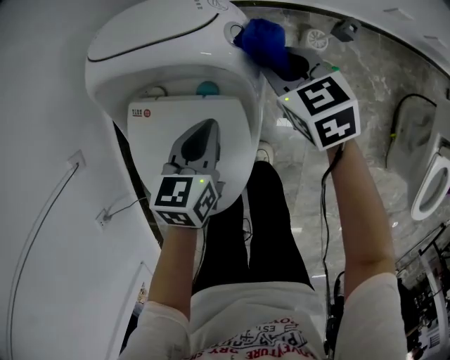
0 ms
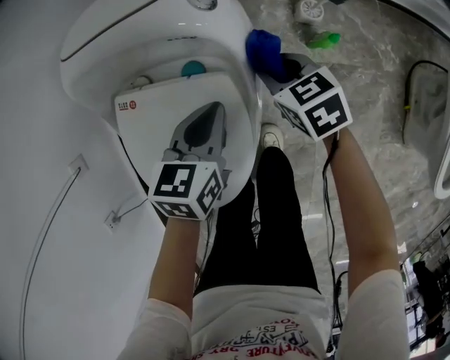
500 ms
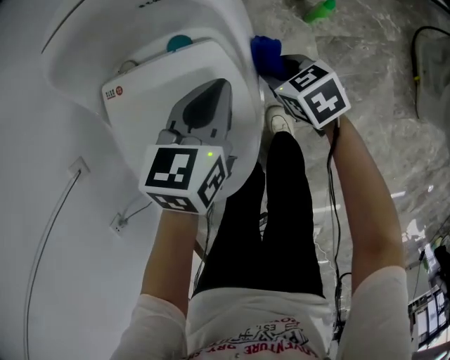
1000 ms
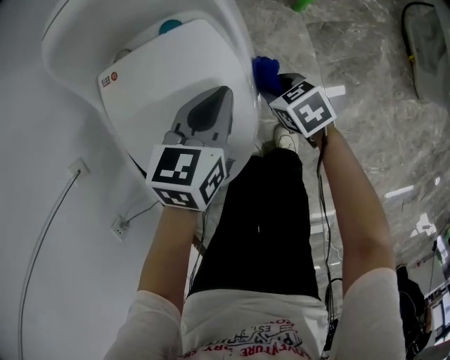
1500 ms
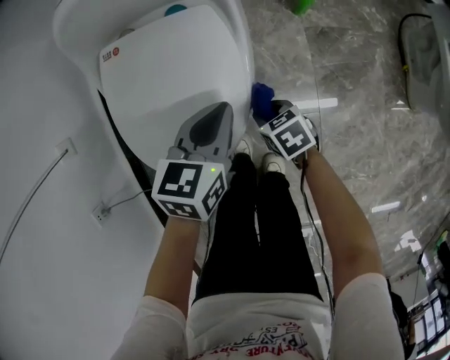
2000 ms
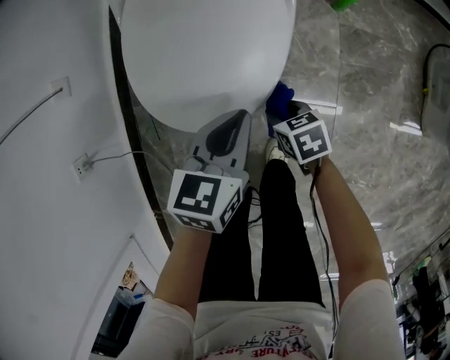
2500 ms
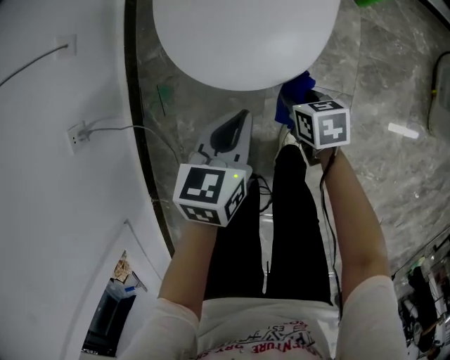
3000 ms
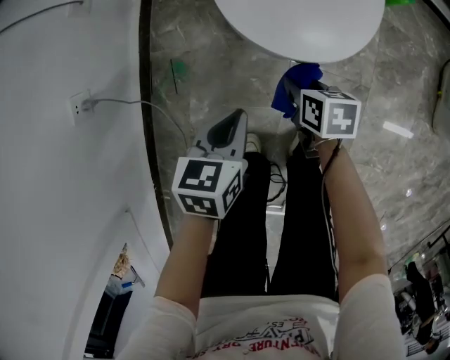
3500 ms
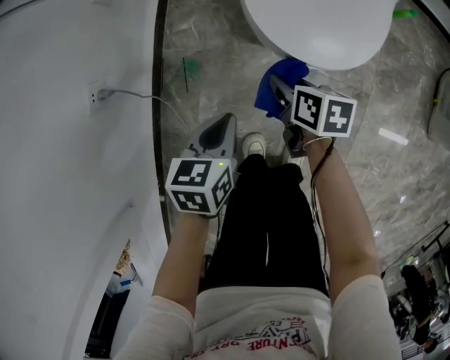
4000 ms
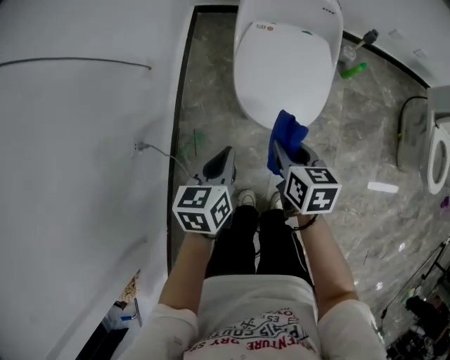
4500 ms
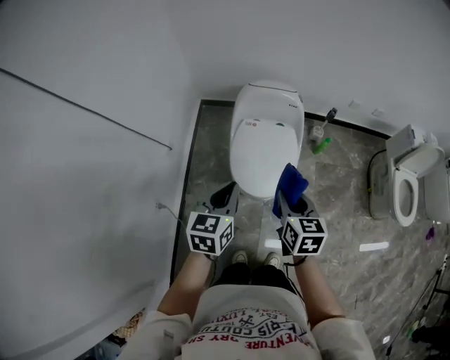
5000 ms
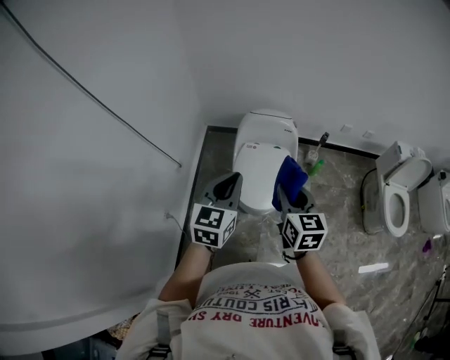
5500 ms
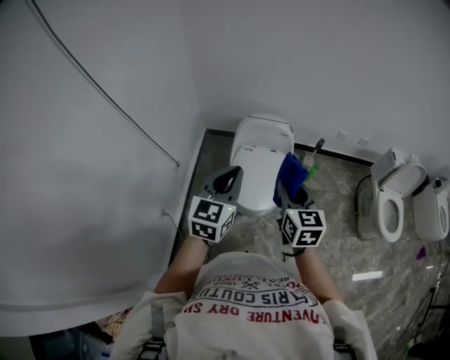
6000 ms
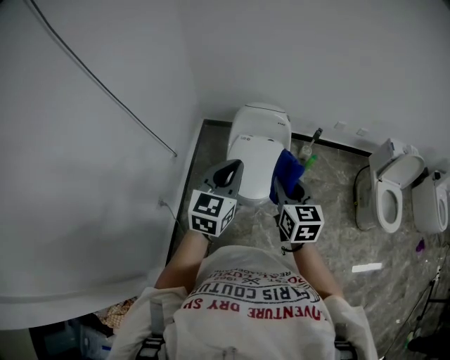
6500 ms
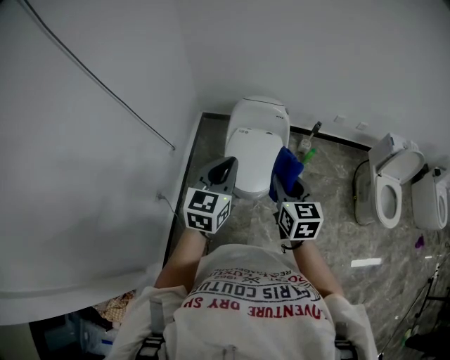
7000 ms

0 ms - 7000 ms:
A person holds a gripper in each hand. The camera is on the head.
0 ms - 2000 ms: The right gripper travels backward and downward by approximately 40 cm, and turns by roughly 30 degrees. Meanwhile the left gripper moves backward, some 20 cm.
2000 ms - 3500 ms: The right gripper moves to the left and backward, about 25 cm. The left gripper is displaced to the left and backward by roughly 40 cm, and swivels roughly 20 degrees.
3500 ms - 5000 ms: Both grippers travel together upward, roughly 50 cm. The left gripper rotates roughly 30 degrees. Meanwhile the right gripper turns by about 40 degrees.
5000 ms - 7000 ms: The grippers both shift upward and backward by about 20 cm.

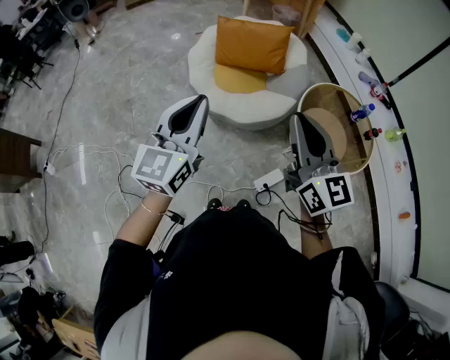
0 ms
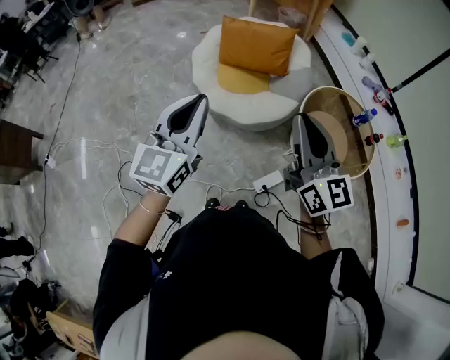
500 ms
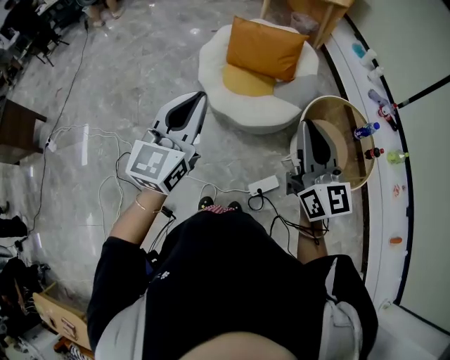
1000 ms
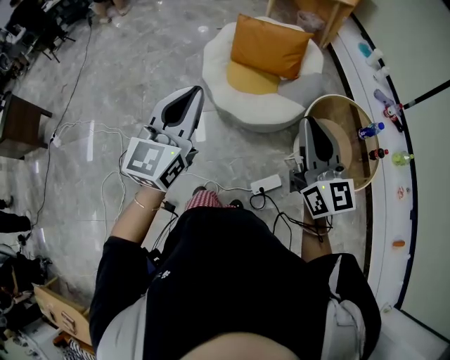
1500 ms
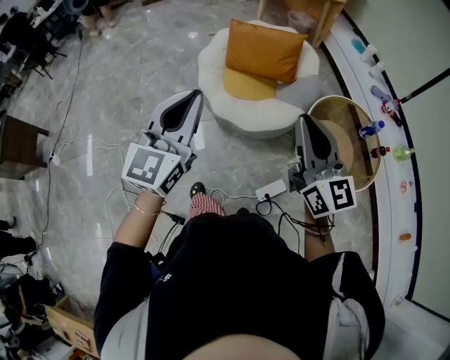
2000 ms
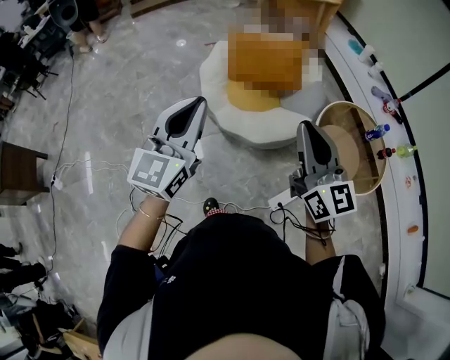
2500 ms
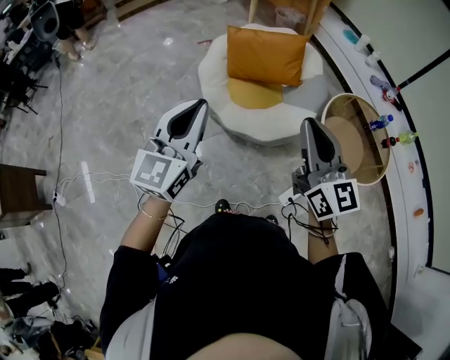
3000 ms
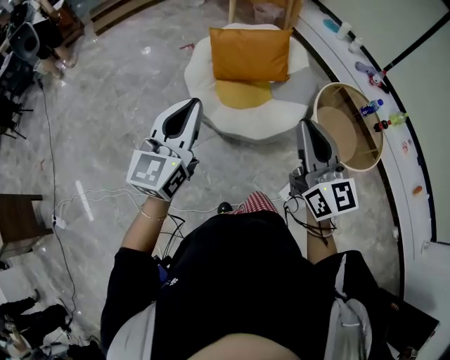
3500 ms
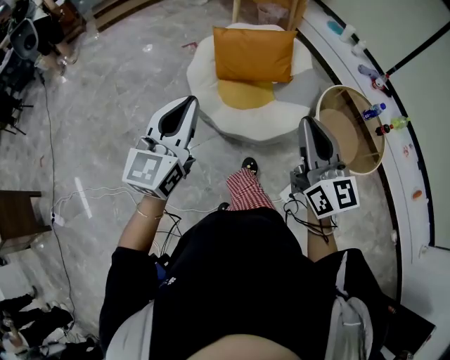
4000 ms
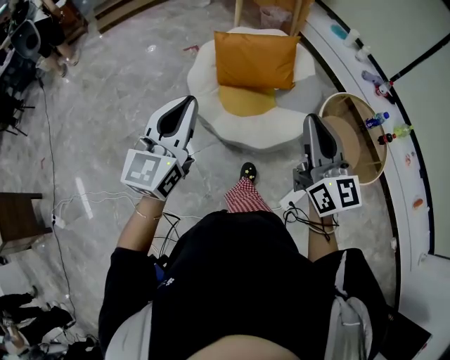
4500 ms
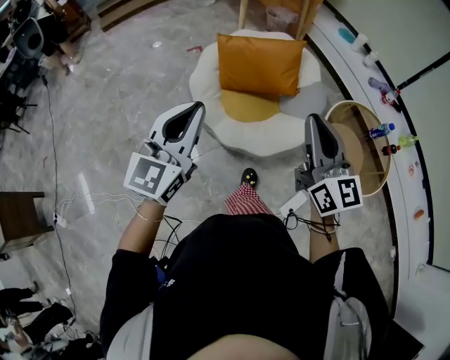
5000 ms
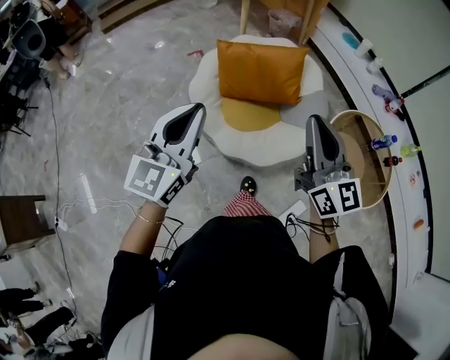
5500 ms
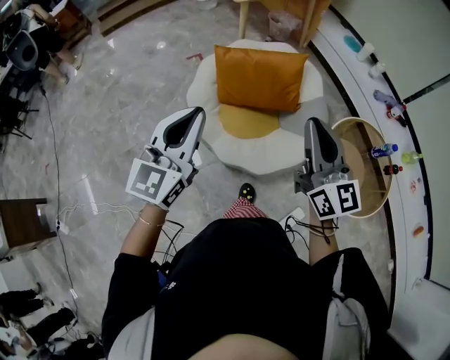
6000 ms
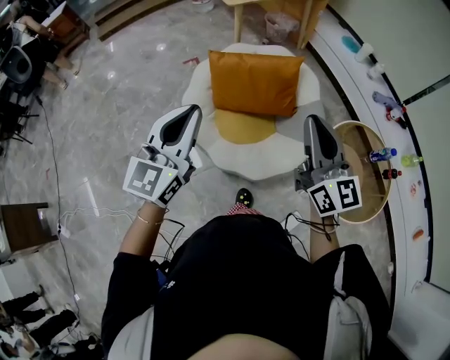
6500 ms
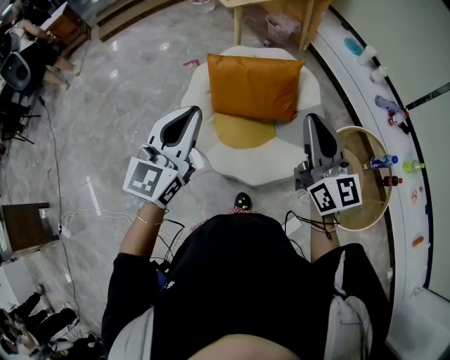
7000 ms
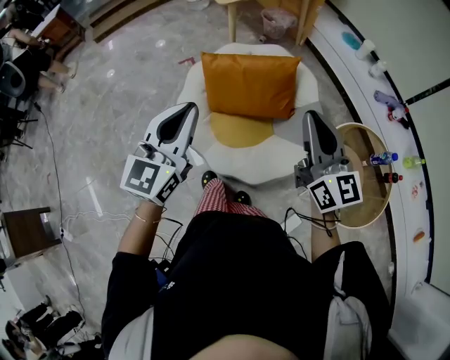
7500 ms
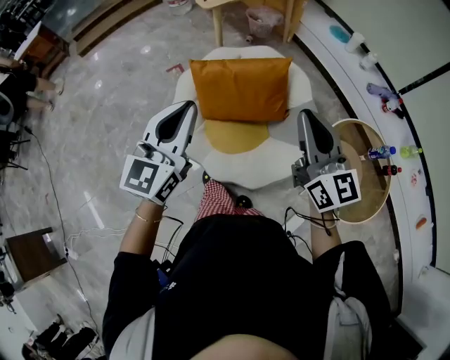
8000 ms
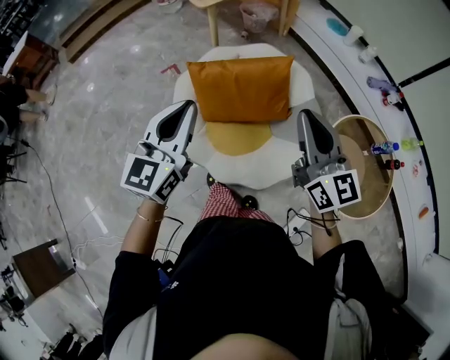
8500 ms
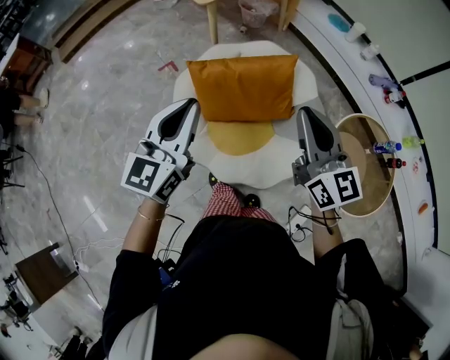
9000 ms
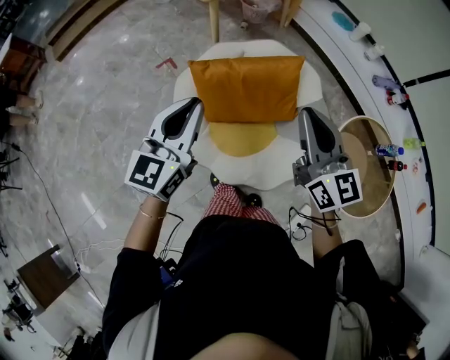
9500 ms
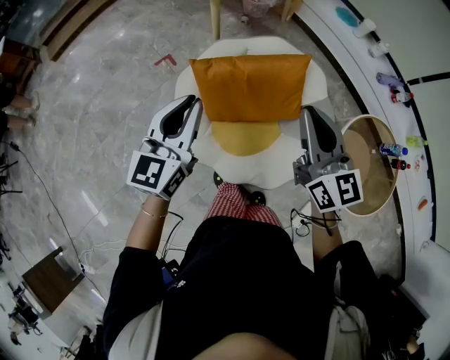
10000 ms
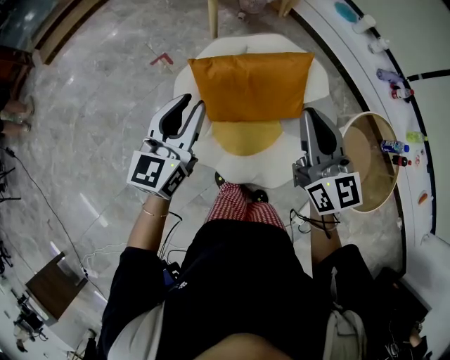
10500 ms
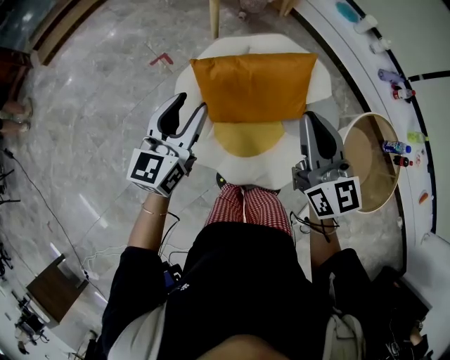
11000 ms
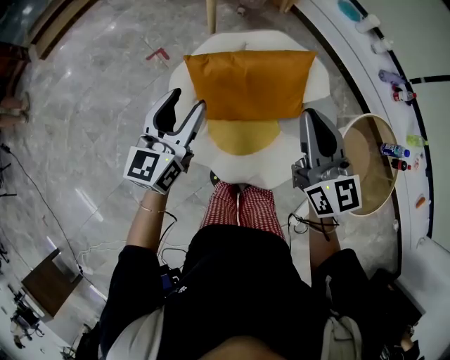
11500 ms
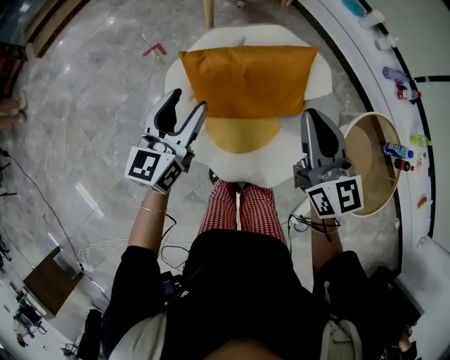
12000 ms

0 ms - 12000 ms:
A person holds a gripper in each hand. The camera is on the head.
0 ms - 2000 ms: The right gripper shifts by roughly 5 cm.
2000 ms - 4000 ms: The left gripper is displaced to the left and forward by roughly 25 cm. Meanwhile the right gripper moves to the left, some 20 cm.
4000 ms - 6000 ms: Both grippers travel together forward, some 20 cm.
6000 ms - 8000 ms: Both grippers travel together forward, approximately 15 cm.
8000 ms - 10000 ms: The right gripper shifts about 20 cm forward and to the left, while the left gripper is displaced forward, to the left and downward by about 20 cm.
10000 ms - 12000 ms: The left gripper shifts approximately 10 cm downward and forward, and opens its fingers. Meanwhile the right gripper goes approximately 5 cm downward.

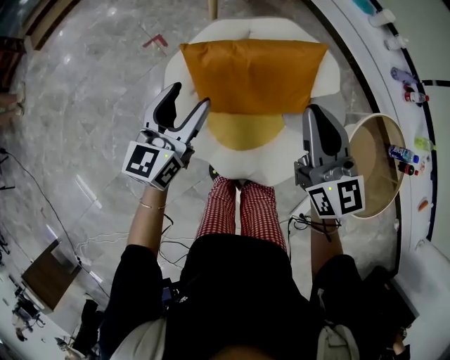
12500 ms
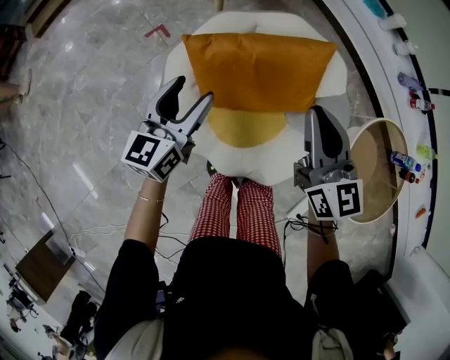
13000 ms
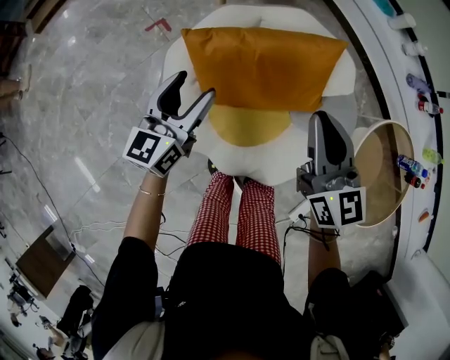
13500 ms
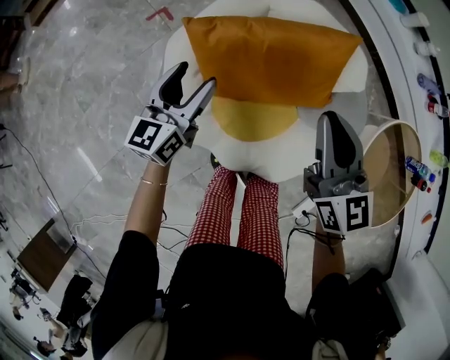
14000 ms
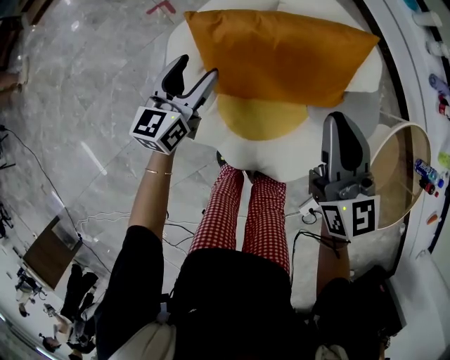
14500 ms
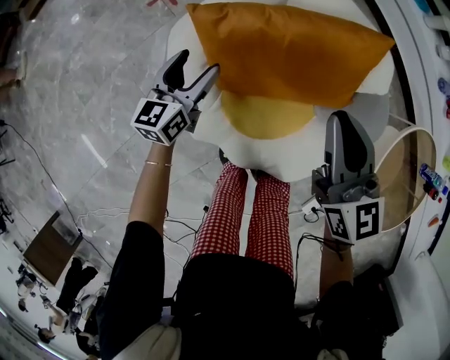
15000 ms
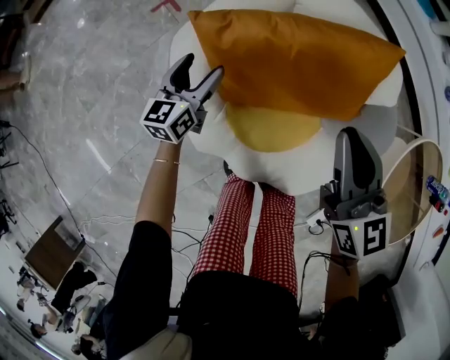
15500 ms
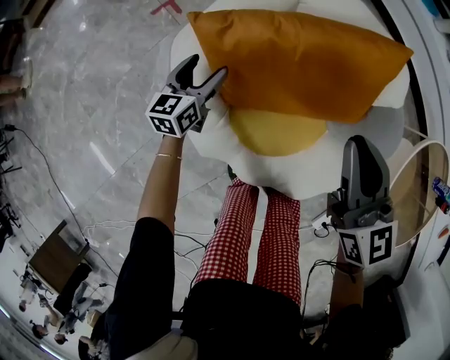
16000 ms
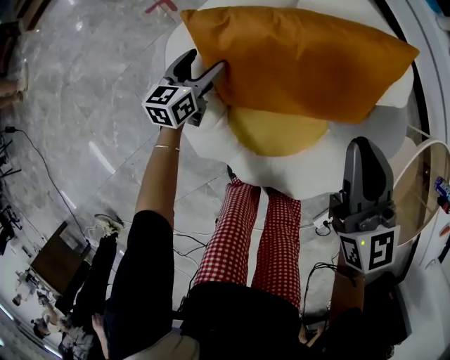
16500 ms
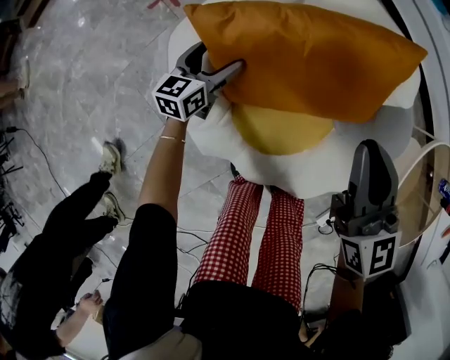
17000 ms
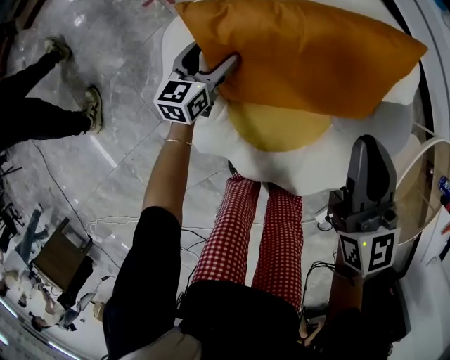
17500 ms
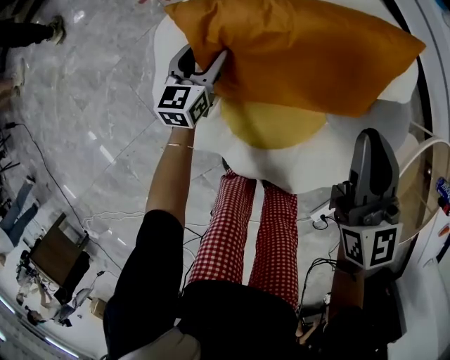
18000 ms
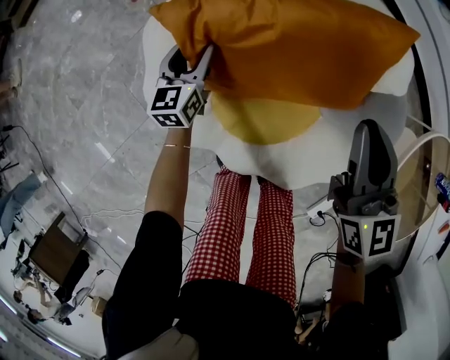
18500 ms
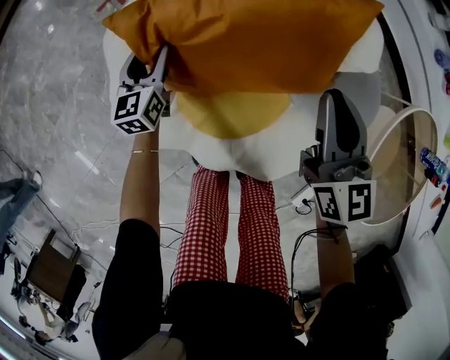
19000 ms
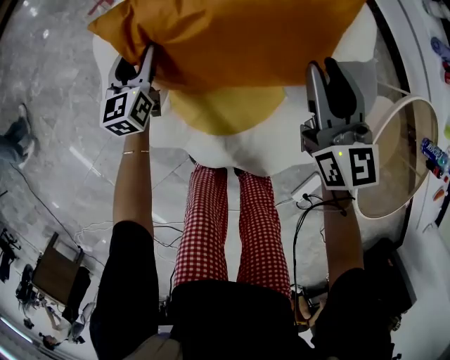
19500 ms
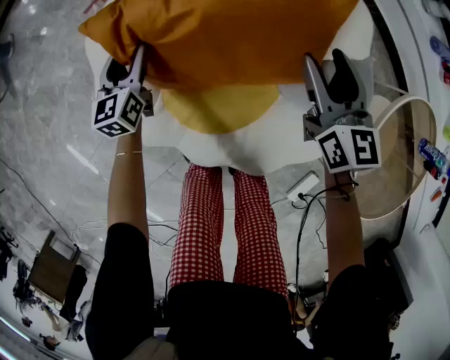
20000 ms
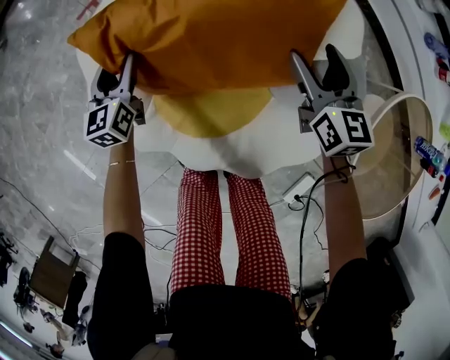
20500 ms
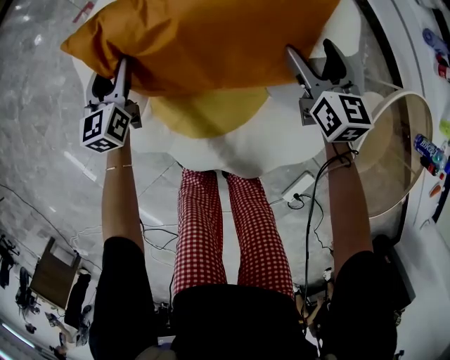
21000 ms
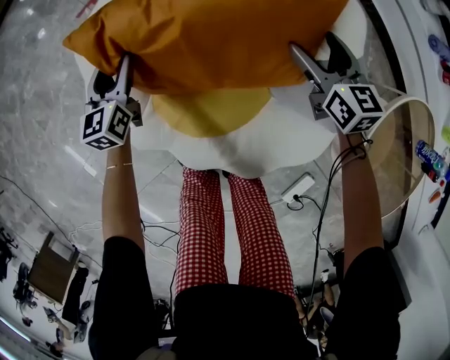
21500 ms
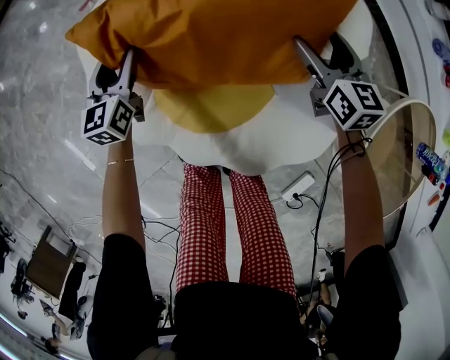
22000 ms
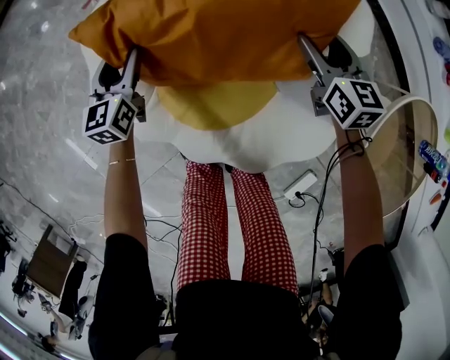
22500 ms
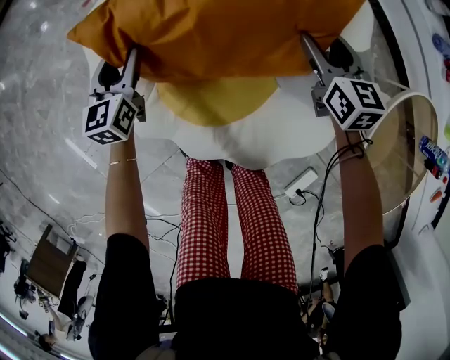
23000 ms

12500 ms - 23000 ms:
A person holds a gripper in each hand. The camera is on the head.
12500 ms - 14500 ms: The left gripper heads downward, covering roughly 20 cm, while the right gripper goes approximately 10 cm downward.
14500 ms - 16500 ms: The right gripper travels downward by approximately 5 cm. The left gripper moves downward, some 20 cm.
16500 ms - 19000 ms: The right gripper is displaced to the right and downward by approximately 10 cm.
19000 ms - 21000 ms: The right gripper shifts about 20 cm downward, to the right and forward, and opens.
21000 ms - 23000 ms: The grippers move only a little.
